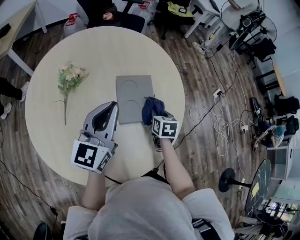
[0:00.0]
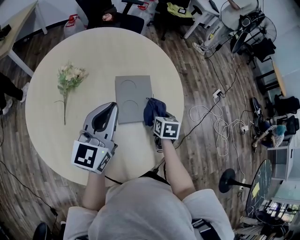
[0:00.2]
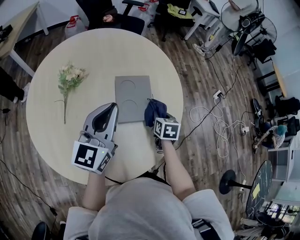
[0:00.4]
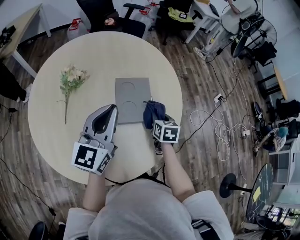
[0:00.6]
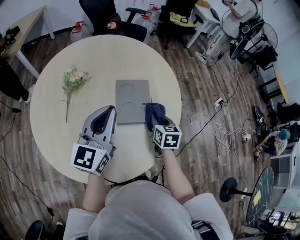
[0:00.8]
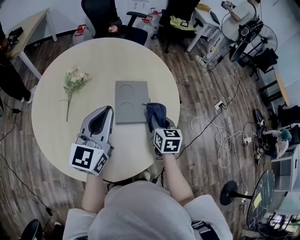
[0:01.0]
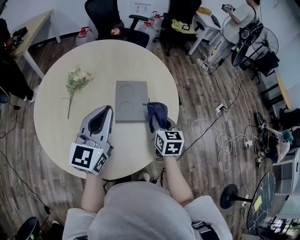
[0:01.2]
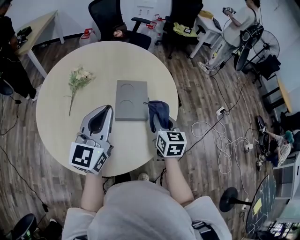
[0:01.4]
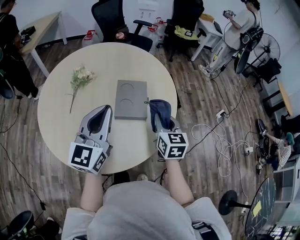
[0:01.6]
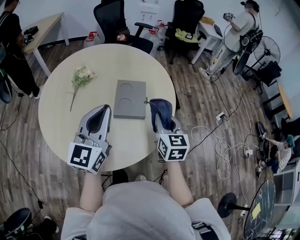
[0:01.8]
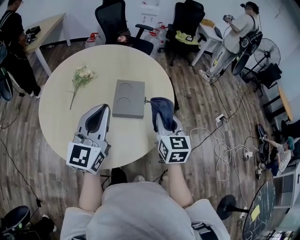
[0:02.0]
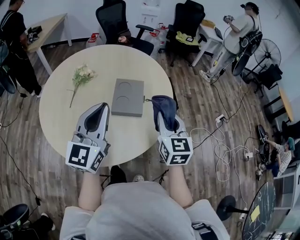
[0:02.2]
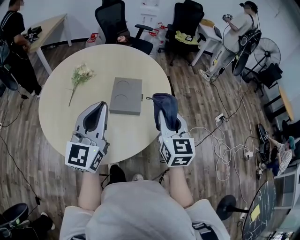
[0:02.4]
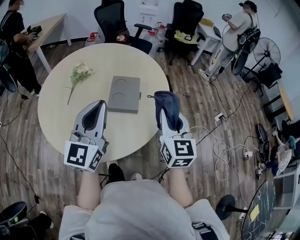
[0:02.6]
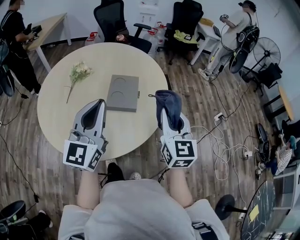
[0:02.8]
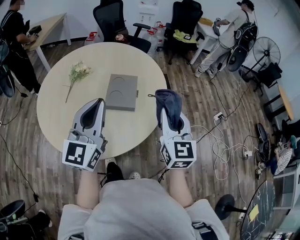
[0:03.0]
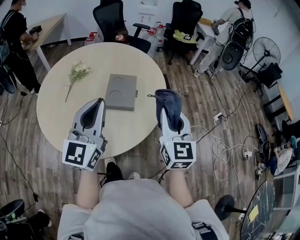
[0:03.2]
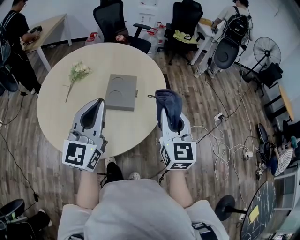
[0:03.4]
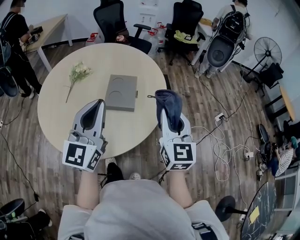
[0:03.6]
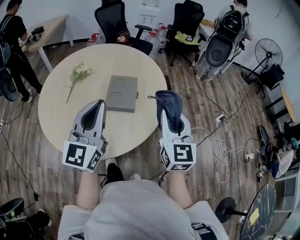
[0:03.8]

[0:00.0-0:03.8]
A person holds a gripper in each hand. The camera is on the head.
0:00.0 to 0:01.2: The left gripper goes some 5 cm backward. The right gripper shifts roughly 10 cm upward and backward, and changes its angle by roughly 20 degrees.
0:01.2 to 0:02.6: The right gripper heads upward, backward and to the right, covering approximately 20 cm, and changes its angle by about 30 degrees; the left gripper is displaced backward, upward and to the right by about 15 cm.
0:02.6 to 0:03.8: There are only small adjustments of the grippers.

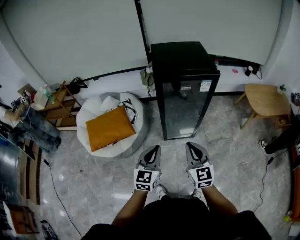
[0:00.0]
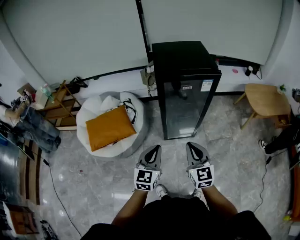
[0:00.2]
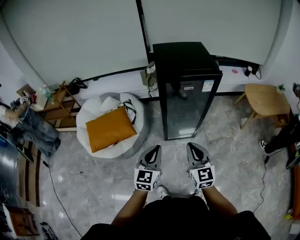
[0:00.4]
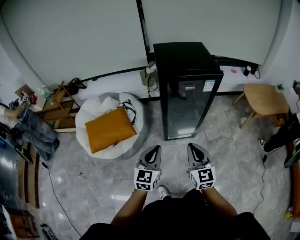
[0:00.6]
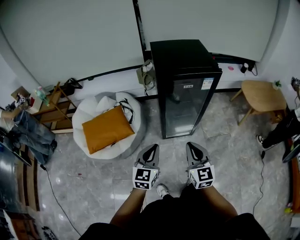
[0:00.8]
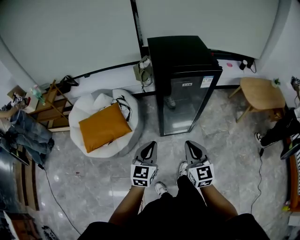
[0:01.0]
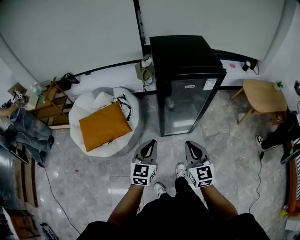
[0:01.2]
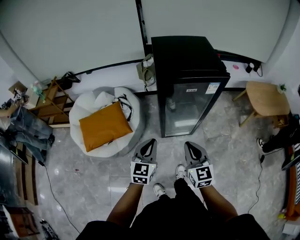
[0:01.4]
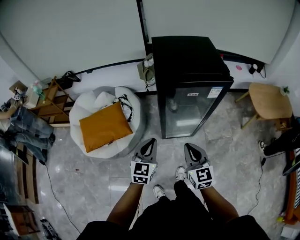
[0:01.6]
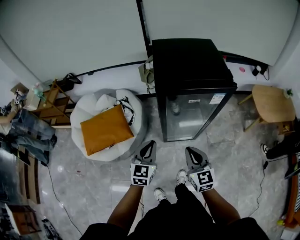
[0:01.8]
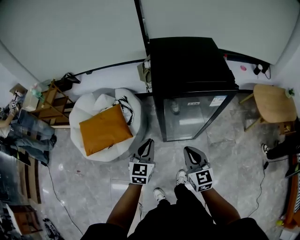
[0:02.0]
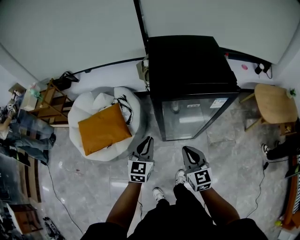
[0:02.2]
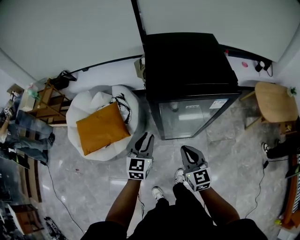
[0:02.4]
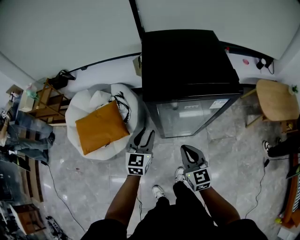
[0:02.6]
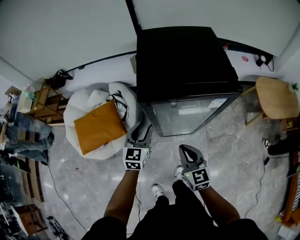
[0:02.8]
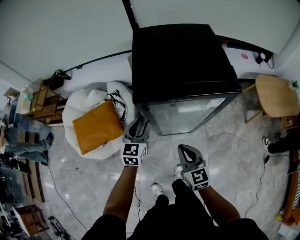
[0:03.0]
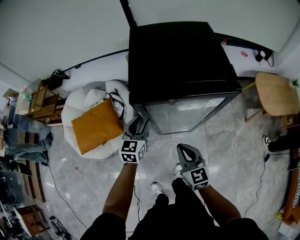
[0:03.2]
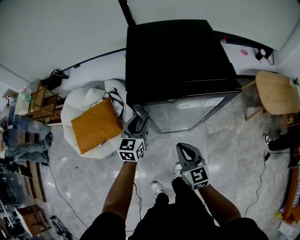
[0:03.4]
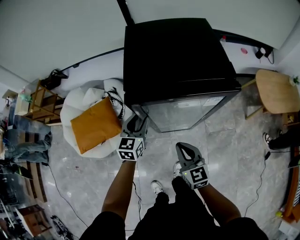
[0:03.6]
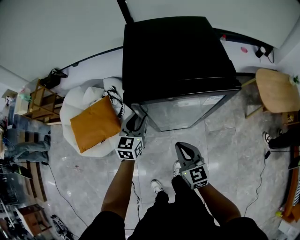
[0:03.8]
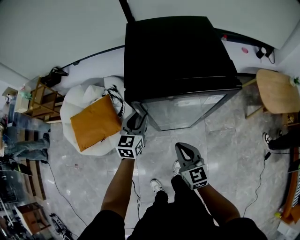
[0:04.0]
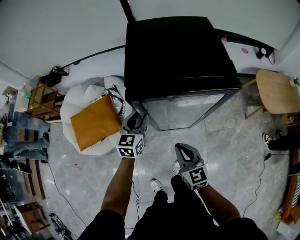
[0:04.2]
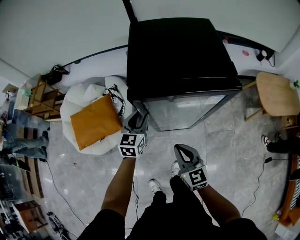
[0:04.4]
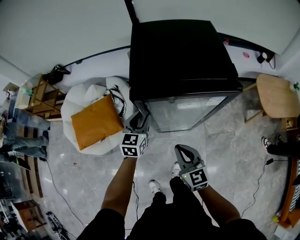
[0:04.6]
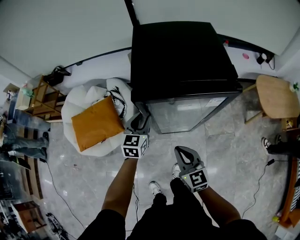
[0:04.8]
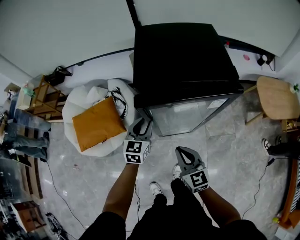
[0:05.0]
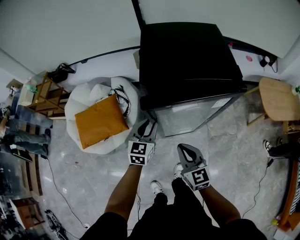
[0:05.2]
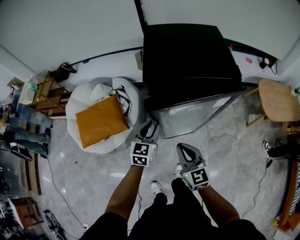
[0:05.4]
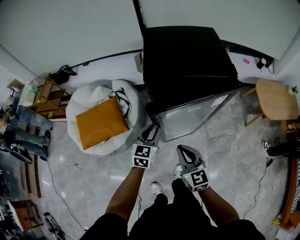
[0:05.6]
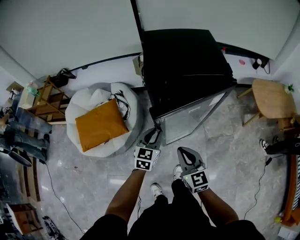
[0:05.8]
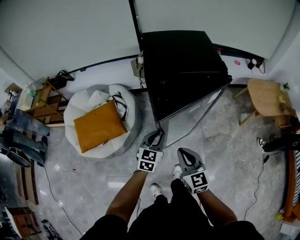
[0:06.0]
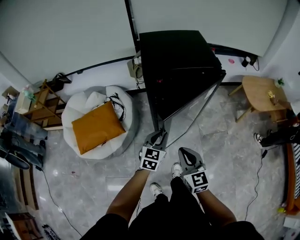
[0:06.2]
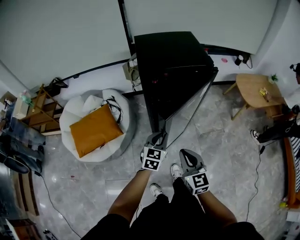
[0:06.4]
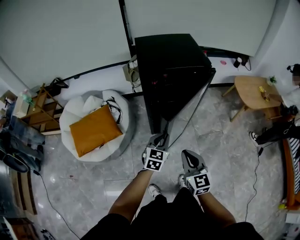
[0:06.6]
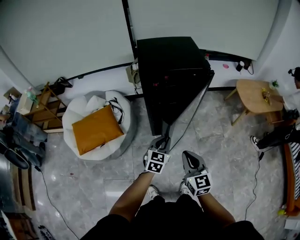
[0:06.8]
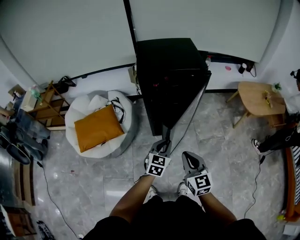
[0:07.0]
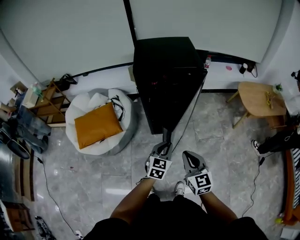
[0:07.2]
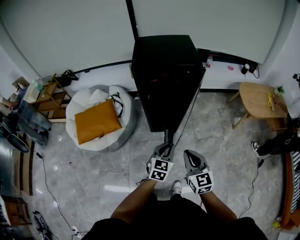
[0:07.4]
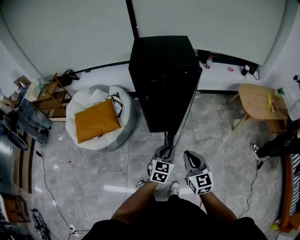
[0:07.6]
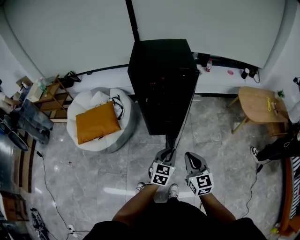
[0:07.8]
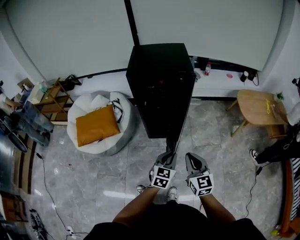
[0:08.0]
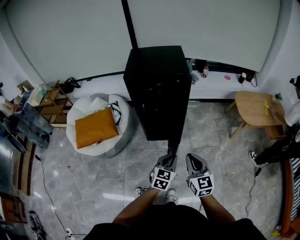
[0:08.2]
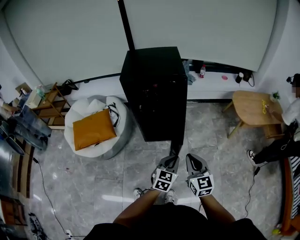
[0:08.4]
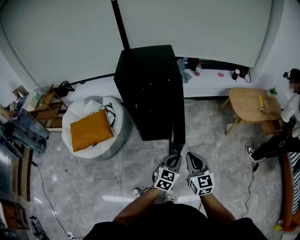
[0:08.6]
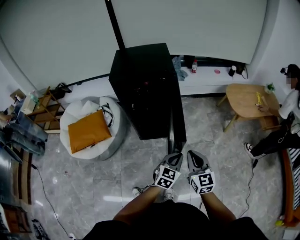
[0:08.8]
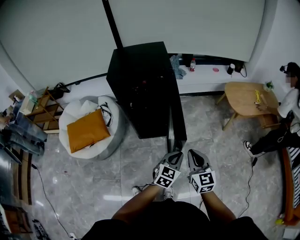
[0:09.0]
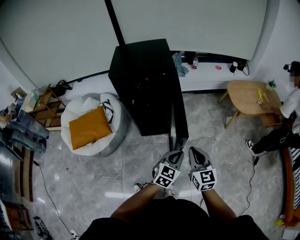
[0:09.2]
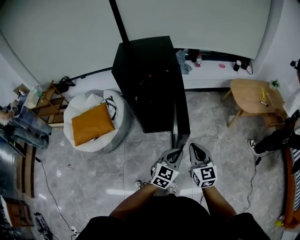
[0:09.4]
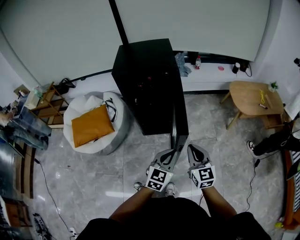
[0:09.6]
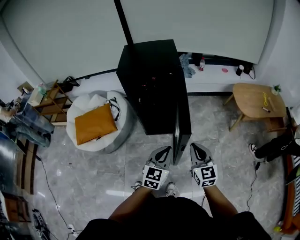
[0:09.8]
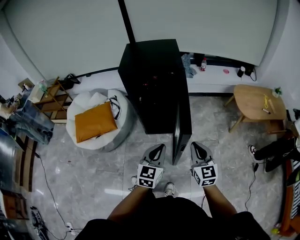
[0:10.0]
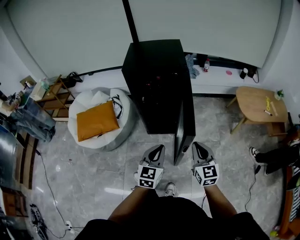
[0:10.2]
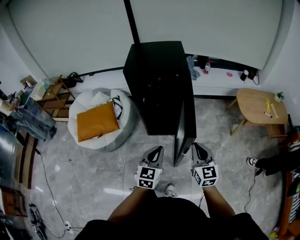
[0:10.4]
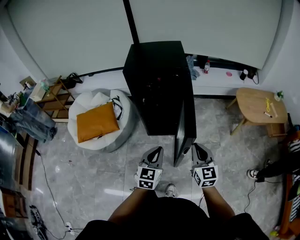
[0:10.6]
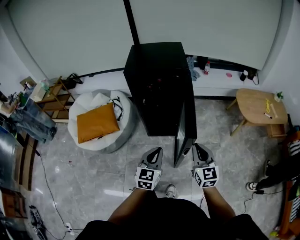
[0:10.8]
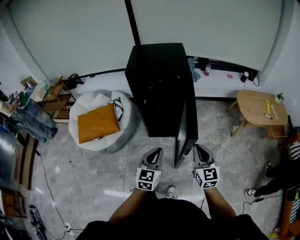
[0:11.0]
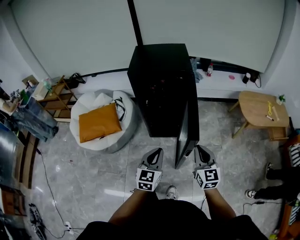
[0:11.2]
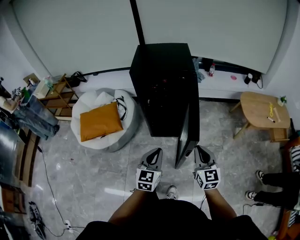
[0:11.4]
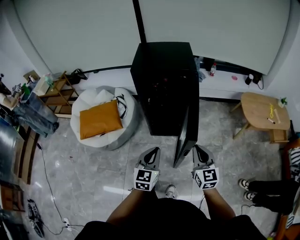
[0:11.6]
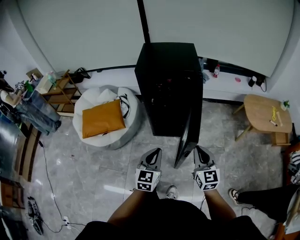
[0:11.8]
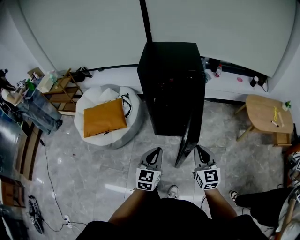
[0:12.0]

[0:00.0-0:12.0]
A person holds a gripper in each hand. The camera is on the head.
0:00.0 to 0:01.6: Both grippers move forward, roughly 10 cm.
0:01.6 to 0:03.0: The right gripper travels forward and downward by some 10 cm. Meanwhile the left gripper shifts approximately 20 cm forward, and opens.
0:03.0 to 0:04.4: There are only small adjustments of the grippers.
0:04.4 to 0:06.0: The left gripper shifts some 15 cm backward; the right gripper moves backward, about 10 cm.
0:06.0 to 0:07.6: Both grippers travel together to the right and backward, approximately 20 cm.
0:07.6 to 0:09.0: Both grippers travel together to the right, about 15 cm.
0:09.0 to 0:10.4: The left gripper goes approximately 15 cm to the left and upward, and turns by some 20 degrees.
0:10.4 to 0:12.0: The left gripper is displaced to the left by about 5 cm.

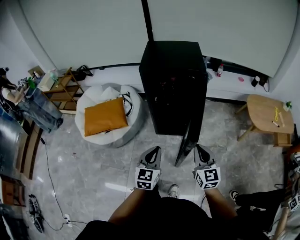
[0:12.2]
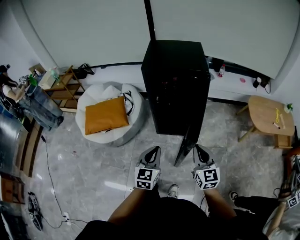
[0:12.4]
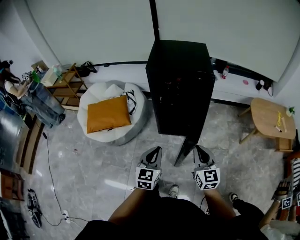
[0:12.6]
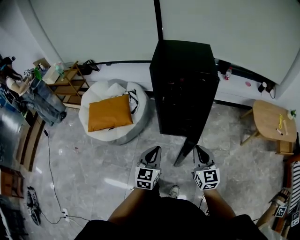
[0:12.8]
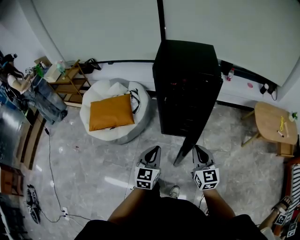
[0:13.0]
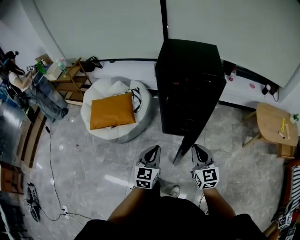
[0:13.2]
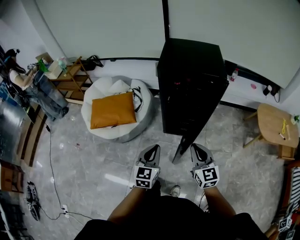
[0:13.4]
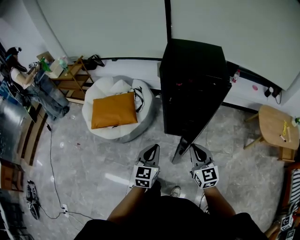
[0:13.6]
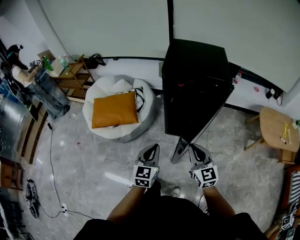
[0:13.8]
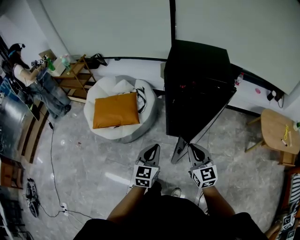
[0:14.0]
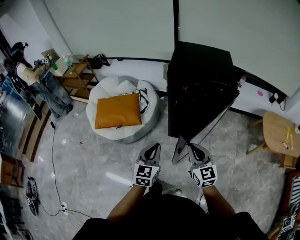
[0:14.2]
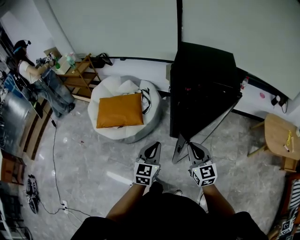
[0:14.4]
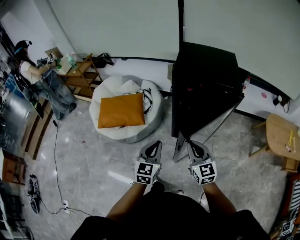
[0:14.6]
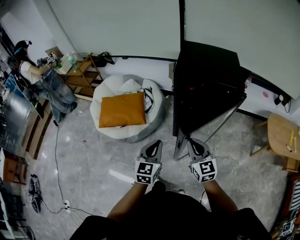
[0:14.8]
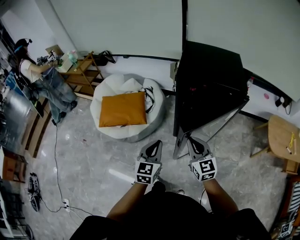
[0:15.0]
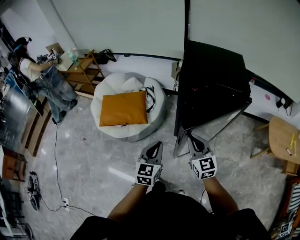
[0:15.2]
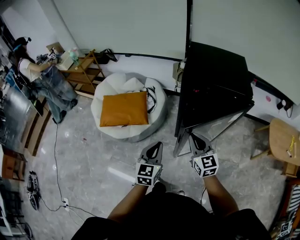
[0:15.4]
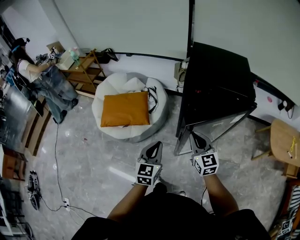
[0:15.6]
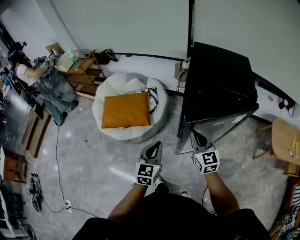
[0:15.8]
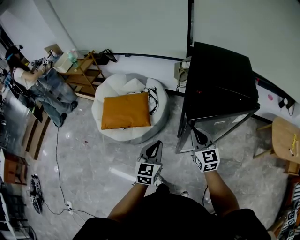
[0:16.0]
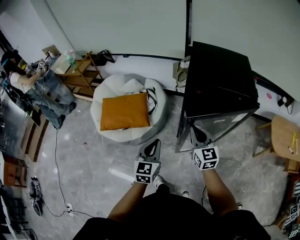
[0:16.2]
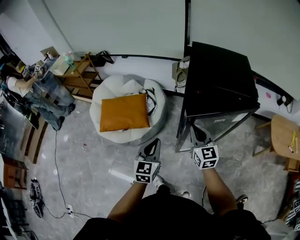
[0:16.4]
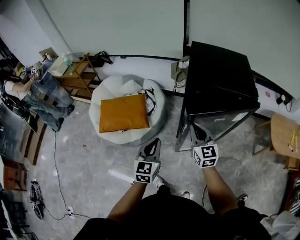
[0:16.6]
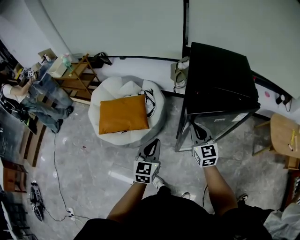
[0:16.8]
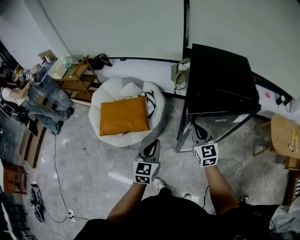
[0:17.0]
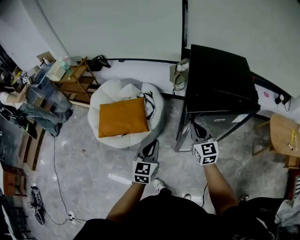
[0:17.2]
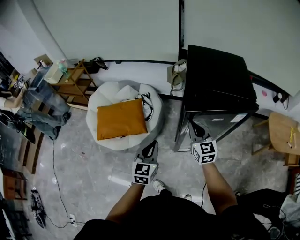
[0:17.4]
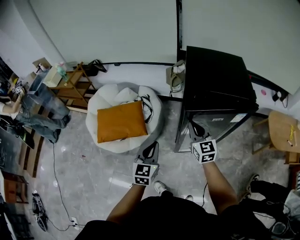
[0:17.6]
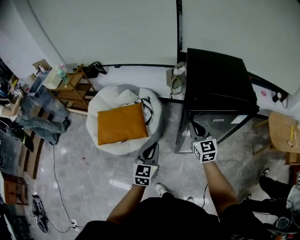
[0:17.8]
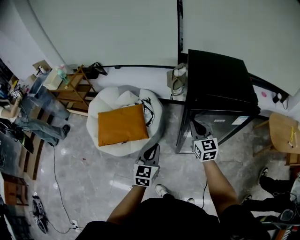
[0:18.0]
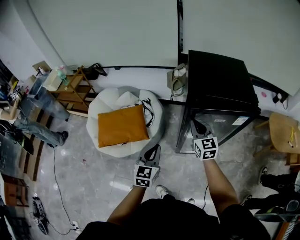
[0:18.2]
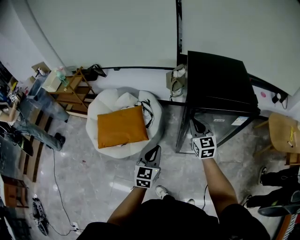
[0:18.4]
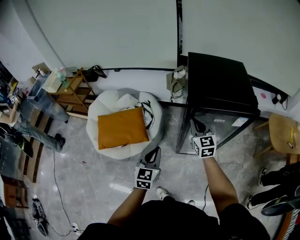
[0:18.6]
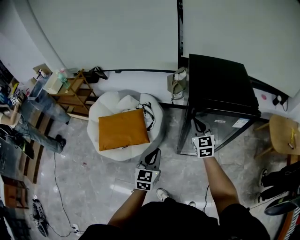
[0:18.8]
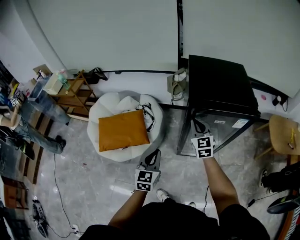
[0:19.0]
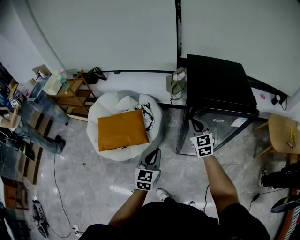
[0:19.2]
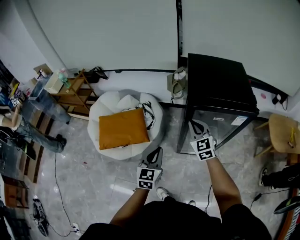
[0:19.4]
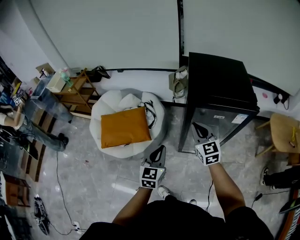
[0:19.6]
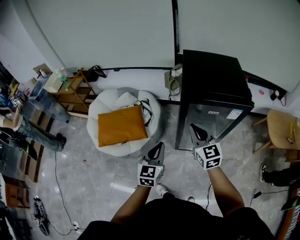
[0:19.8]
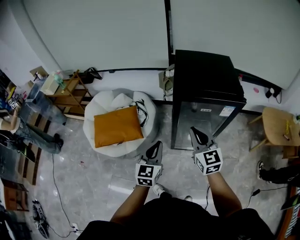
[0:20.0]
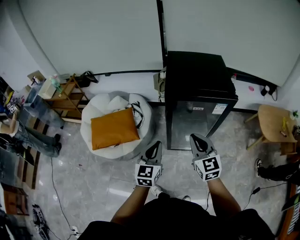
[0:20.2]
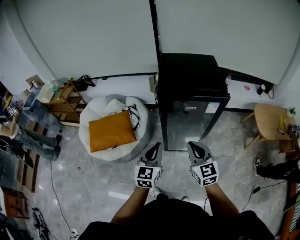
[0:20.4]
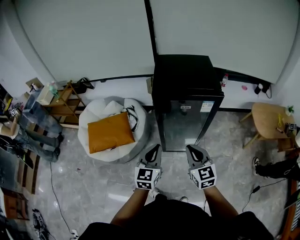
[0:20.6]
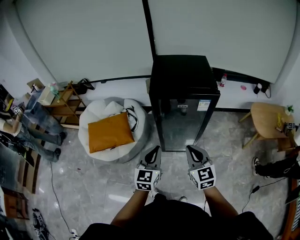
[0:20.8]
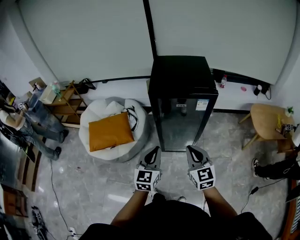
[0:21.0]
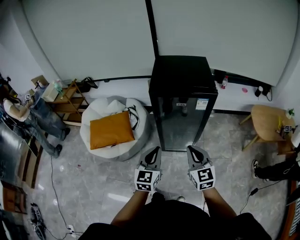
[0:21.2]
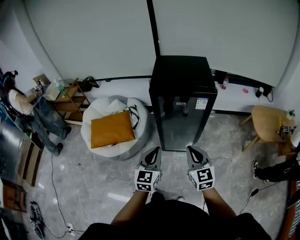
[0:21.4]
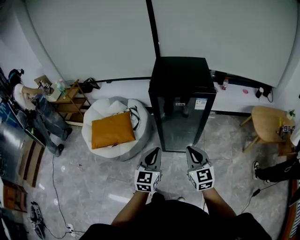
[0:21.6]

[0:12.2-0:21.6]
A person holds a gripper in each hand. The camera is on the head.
0:12.2 to 0:13.8: Both grippers move to the left and forward, some 10 cm.
0:13.8 to 0:15.4: The right gripper shifts some 15 cm forward and to the left; the left gripper travels forward and to the left by some 10 cm.
0:15.4 to 0:17.0: The left gripper moves forward and to the left, about 10 cm. The right gripper moves forward, roughly 10 cm.
0:17.0 to 0:18.4: The right gripper goes approximately 10 cm forward.
0:18.4 to 0:20.0: The right gripper travels backward and upward by approximately 15 cm, while the left gripper travels to the right by roughly 5 cm.
0:20.0 to 0:21.6: Both grippers travel together backward and to the right, about 20 cm.
